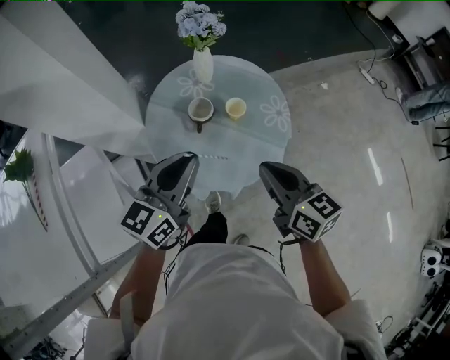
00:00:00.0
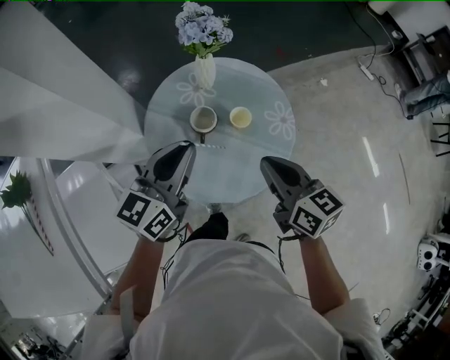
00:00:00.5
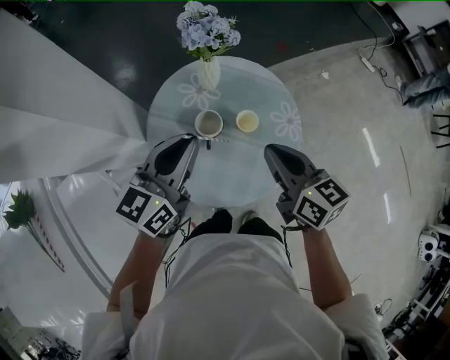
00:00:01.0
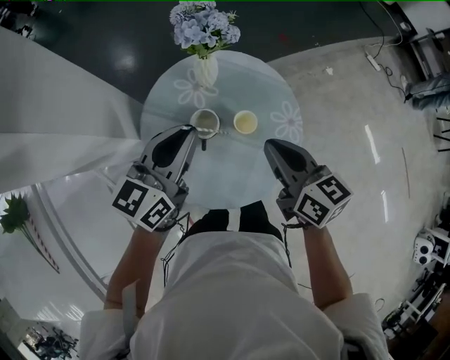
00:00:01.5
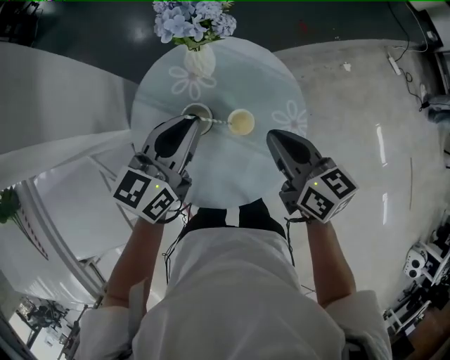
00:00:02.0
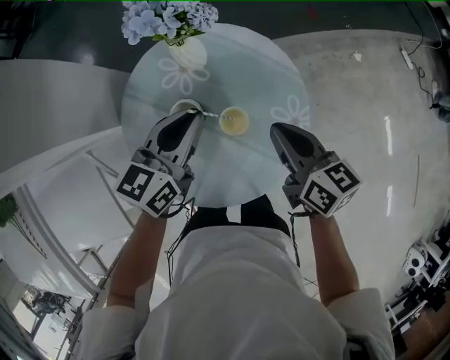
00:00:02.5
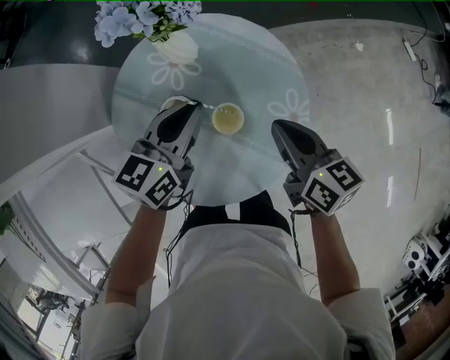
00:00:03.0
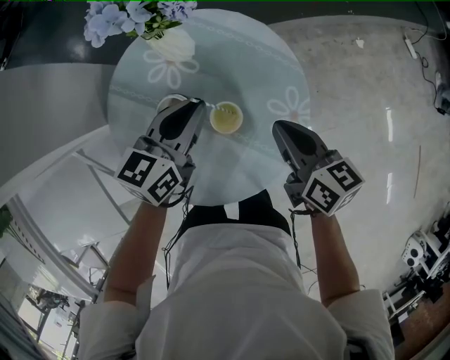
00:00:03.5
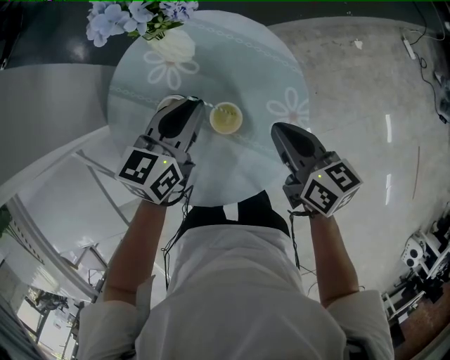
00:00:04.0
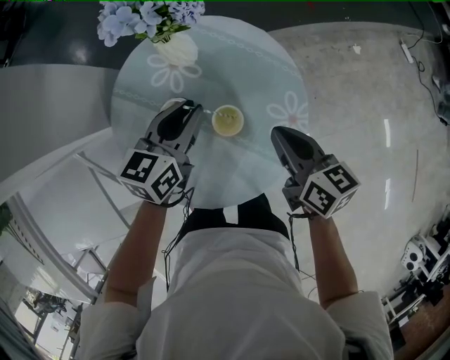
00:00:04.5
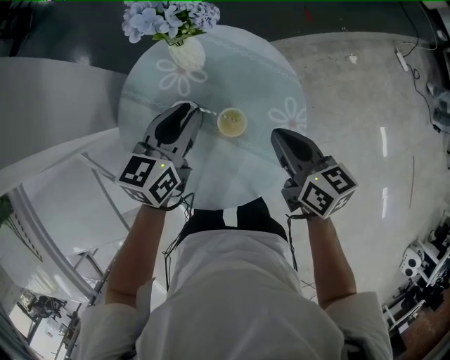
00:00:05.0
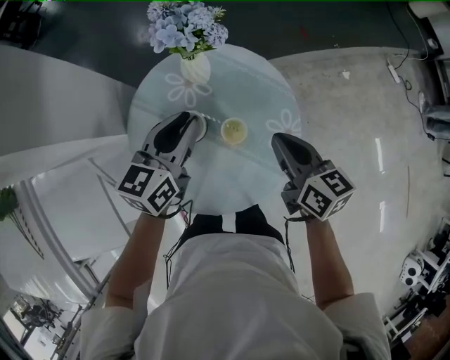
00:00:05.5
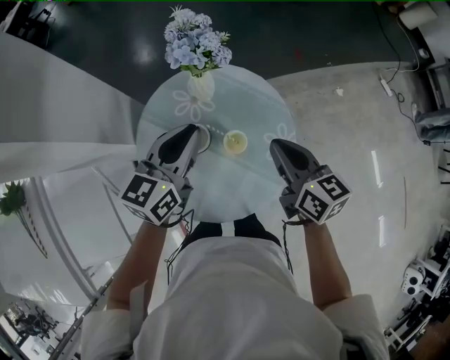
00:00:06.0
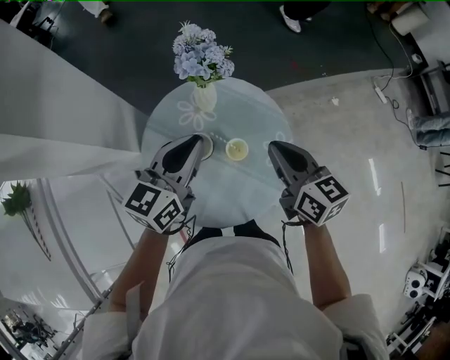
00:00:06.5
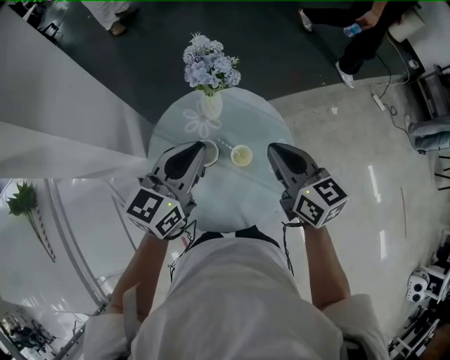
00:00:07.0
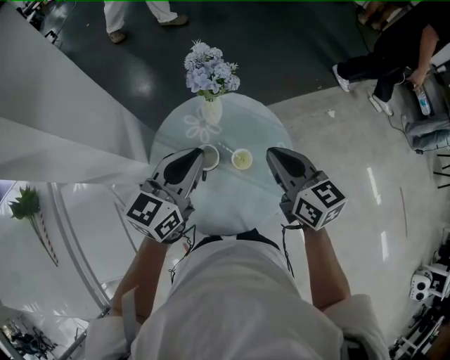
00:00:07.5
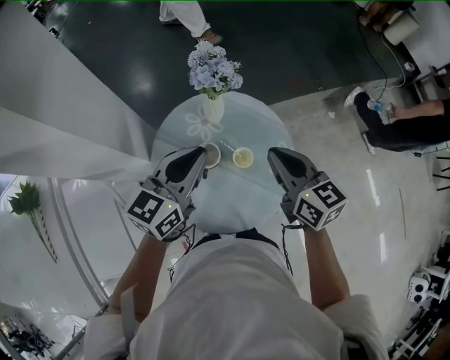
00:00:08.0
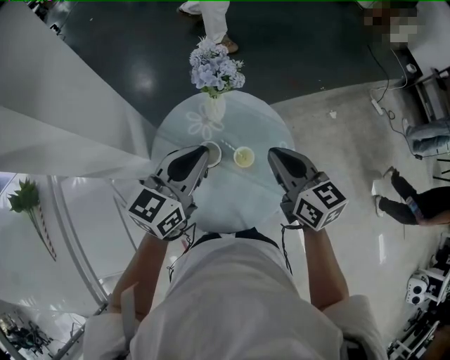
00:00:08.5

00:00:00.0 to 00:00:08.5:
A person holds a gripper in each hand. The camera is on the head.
00:00:00.0 to 00:00:02.0: The two grippers go roughly 20 cm forward.
00:00:02.0 to 00:00:04.0: The right gripper heads downward and to the right, covering approximately 10 cm. Meanwhile the left gripper heads downward, covering about 10 cm.
00:00:04.0 to 00:00:06.5: Both grippers travel together upward, roughly 15 cm.
00:00:06.5 to 00:00:08.5: There are only small adjustments of the grippers.

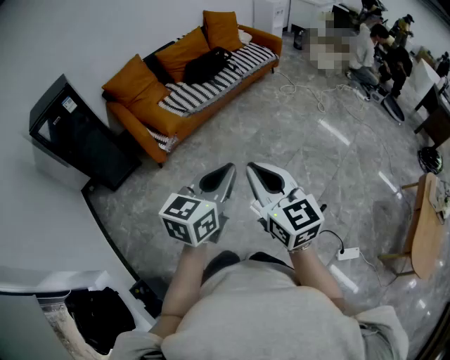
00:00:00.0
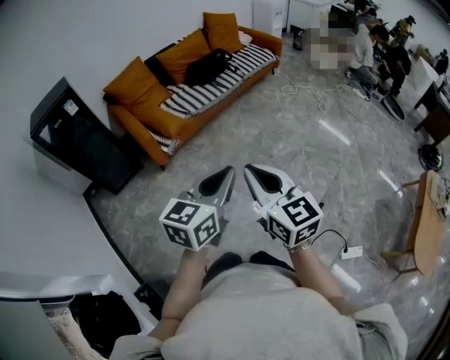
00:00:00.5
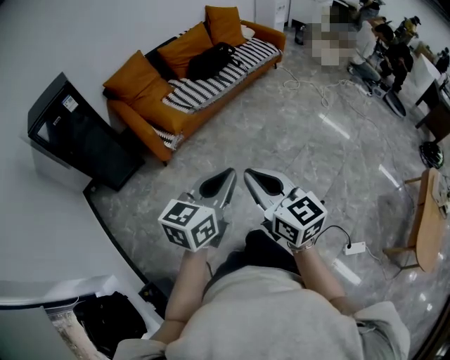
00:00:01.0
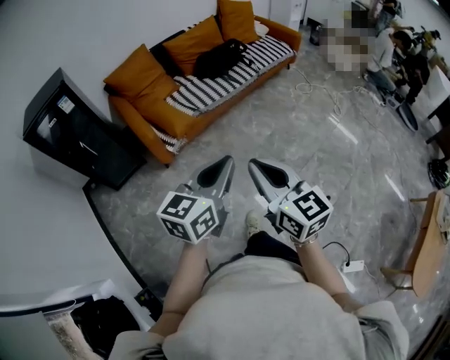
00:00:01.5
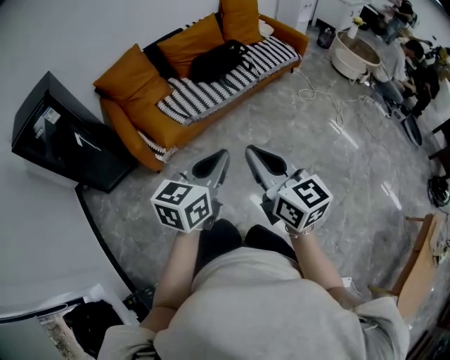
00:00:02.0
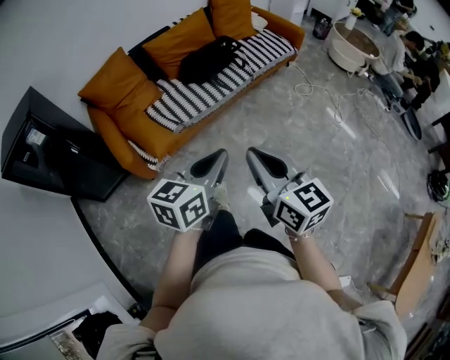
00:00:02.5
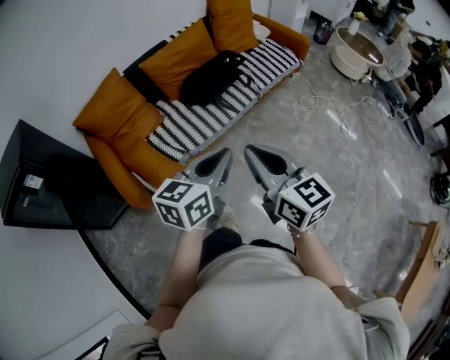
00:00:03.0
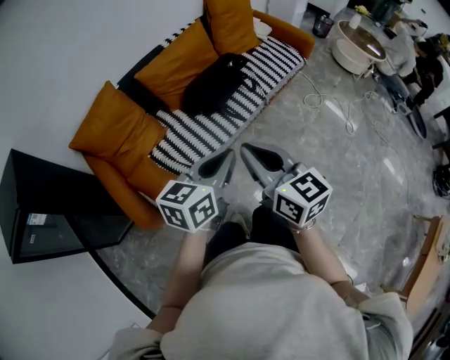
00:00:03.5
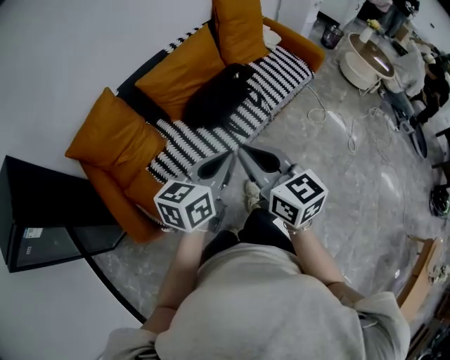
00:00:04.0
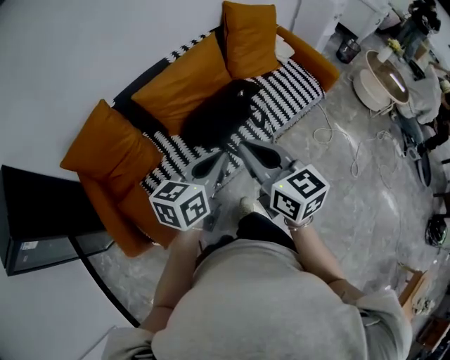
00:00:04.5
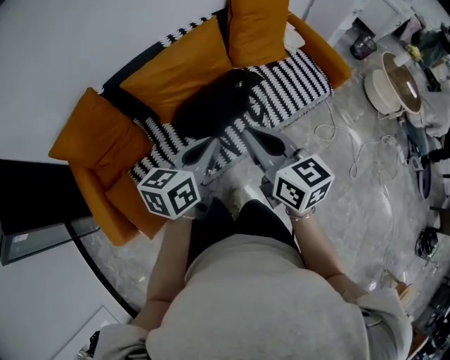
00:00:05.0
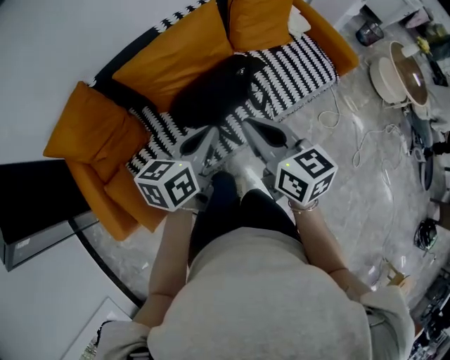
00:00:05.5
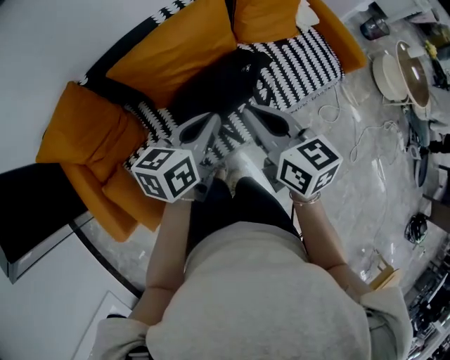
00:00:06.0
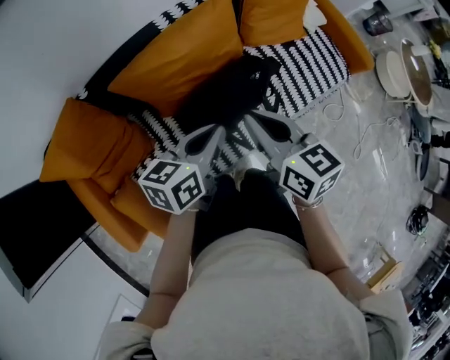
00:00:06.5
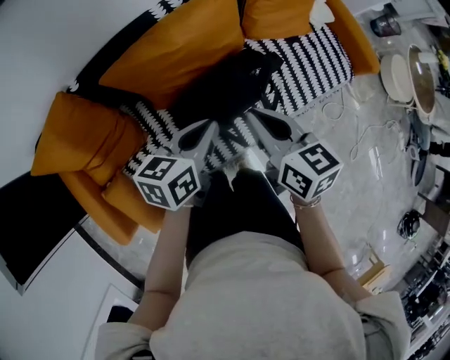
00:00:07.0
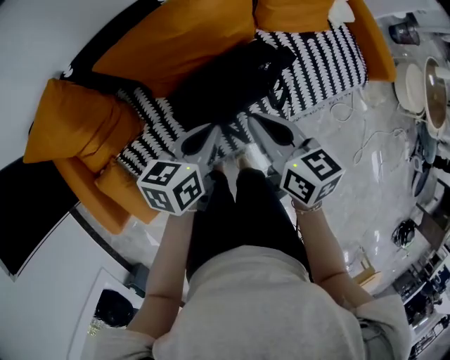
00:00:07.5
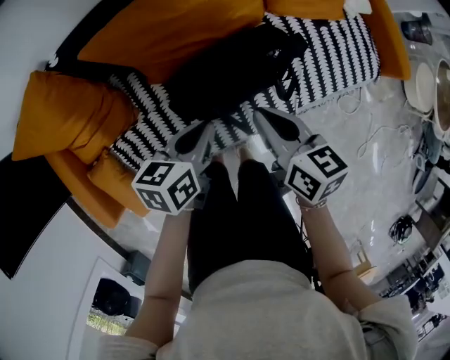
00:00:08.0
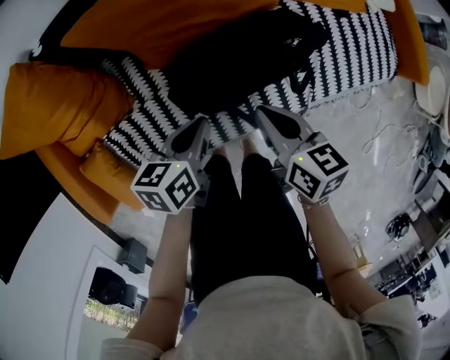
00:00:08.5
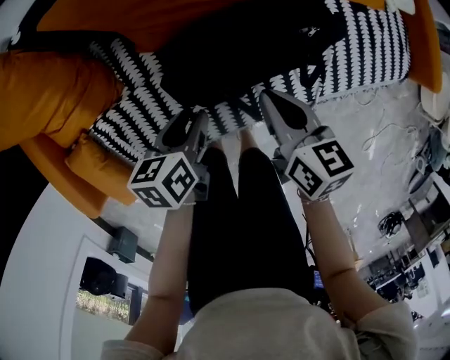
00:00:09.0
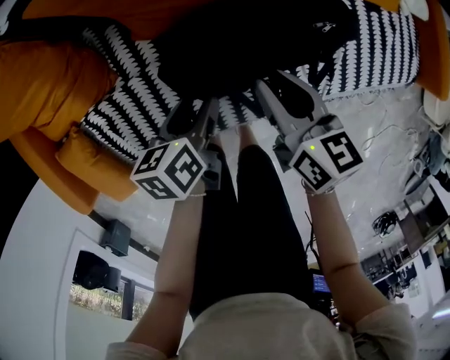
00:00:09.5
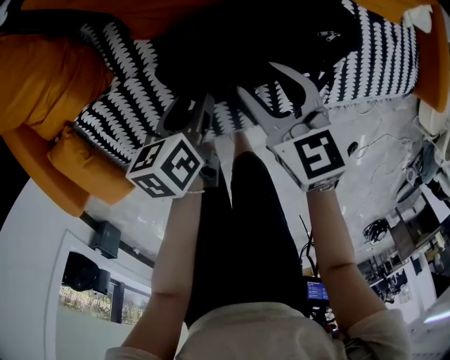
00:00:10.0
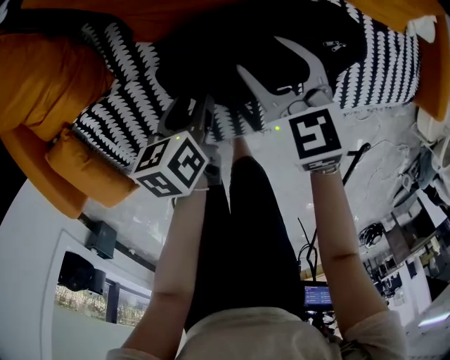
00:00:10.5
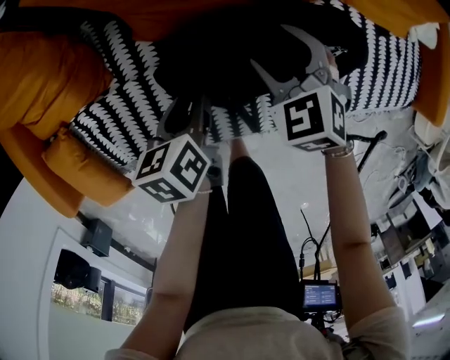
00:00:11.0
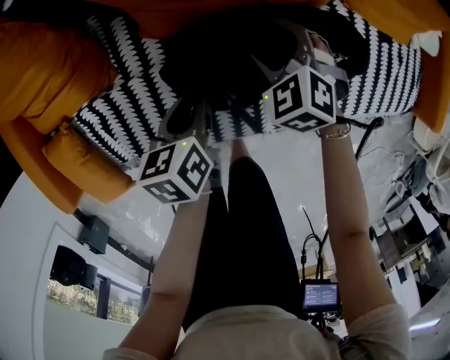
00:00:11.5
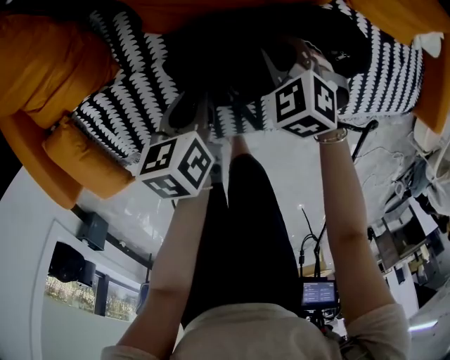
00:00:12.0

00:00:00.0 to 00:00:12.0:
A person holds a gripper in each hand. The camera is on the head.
00:00:00.0 to 00:00:02.0: Both grippers move forward, about 30 cm.
00:00:02.0 to 00:00:04.0: The pair of grippers is taken forward, about 50 cm.
00:00:04.0 to 00:00:06.0: The two grippers go roughly 35 cm forward.
00:00:06.0 to 00:00:08.0: The right gripper goes some 20 cm downward and forward. The left gripper travels downward by approximately 15 cm.
00:00:08.0 to 00:00:10.0: Both grippers travel together downward, approximately 20 cm. The left gripper changes its angle by some 30 degrees, and opens its fingers. Meanwhile the right gripper rotates roughly 30 degrees, and opens its fingers.
00:00:10.0 to 00:00:12.0: The left gripper closes its fingers; the right gripper goes about 10 cm downward and forward, rolls counterclockwise, seen from behind, by approximately 40 degrees, and closes its fingers.

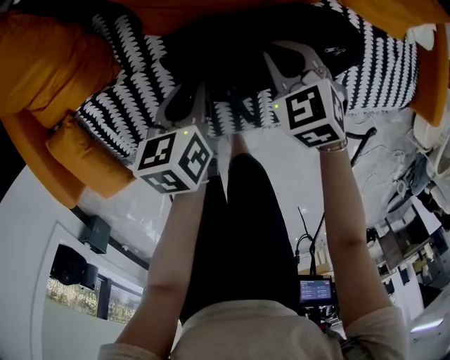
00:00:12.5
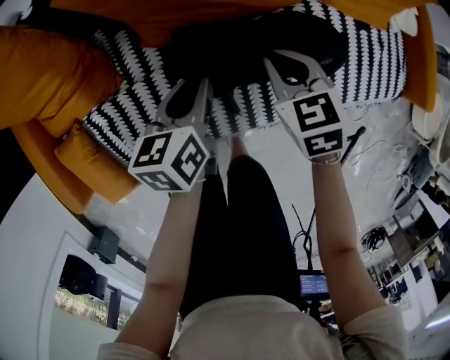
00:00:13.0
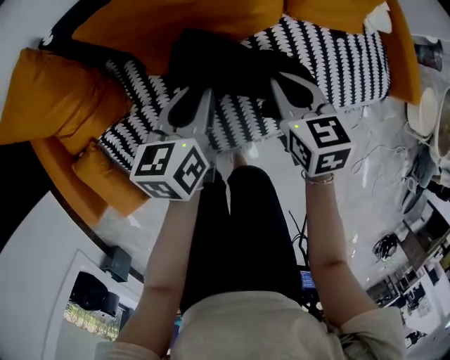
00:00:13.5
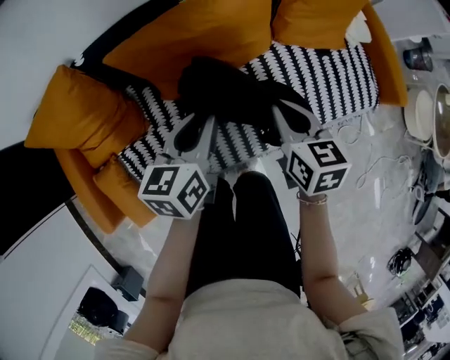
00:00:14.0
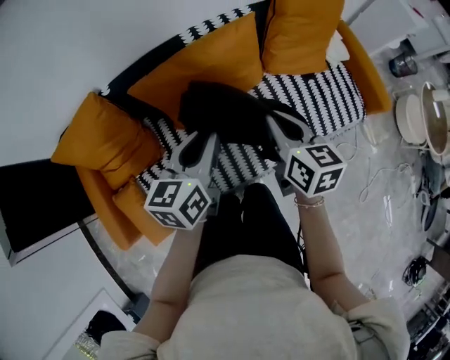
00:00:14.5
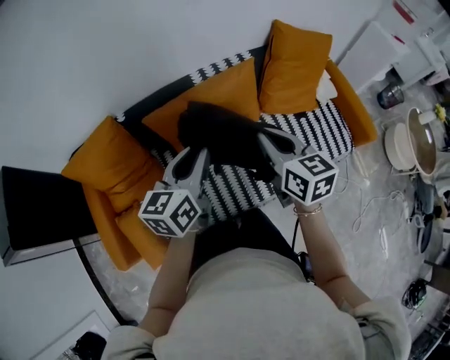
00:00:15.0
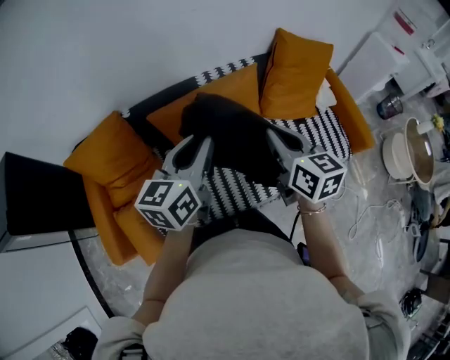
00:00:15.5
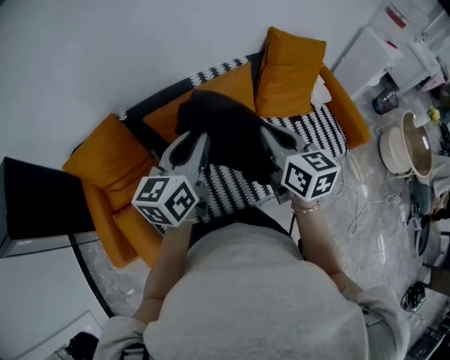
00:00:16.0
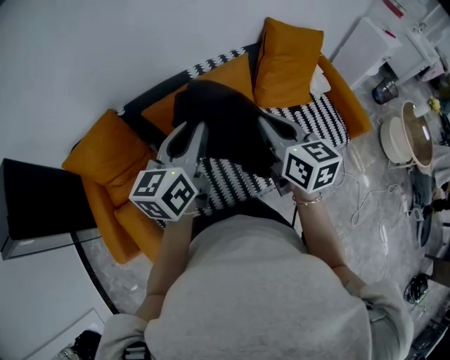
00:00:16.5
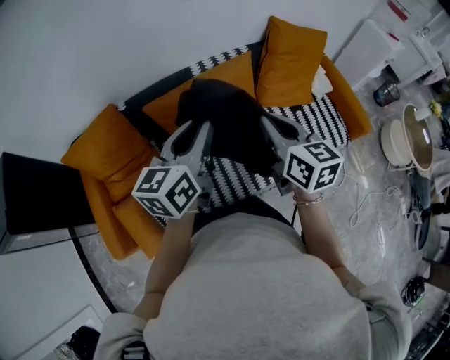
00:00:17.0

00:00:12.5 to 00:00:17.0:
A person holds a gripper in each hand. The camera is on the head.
00:00:12.5 to 00:00:14.5: Both grippers move upward, some 35 cm. The left gripper changes its angle by approximately 30 degrees. The right gripper twists about 50 degrees clockwise, seen from behind.
00:00:14.5 to 00:00:17.0: Both grippers move upward, approximately 15 cm.

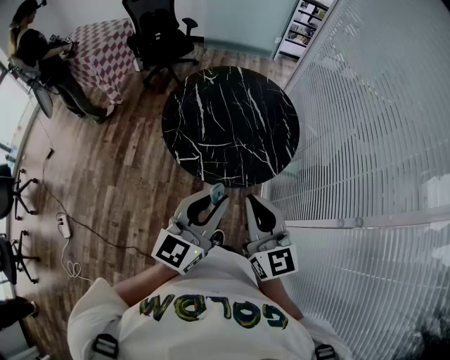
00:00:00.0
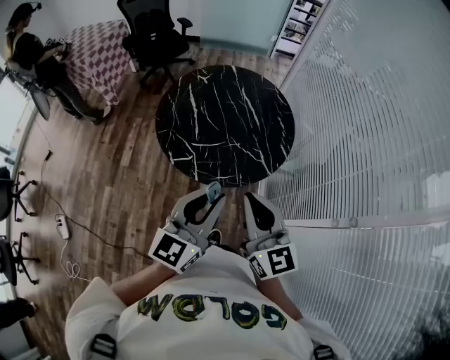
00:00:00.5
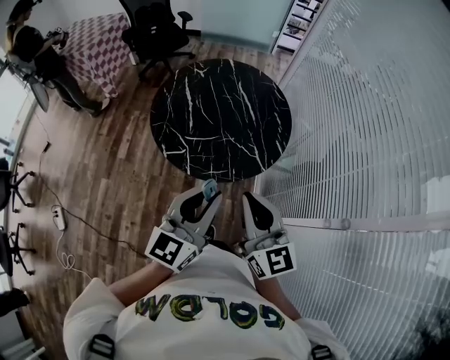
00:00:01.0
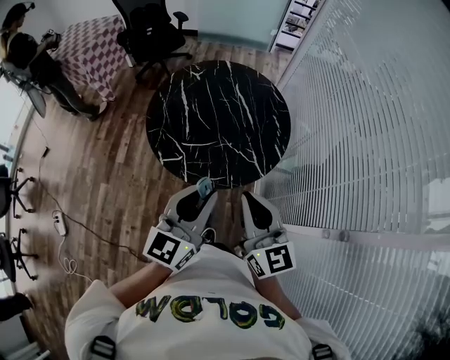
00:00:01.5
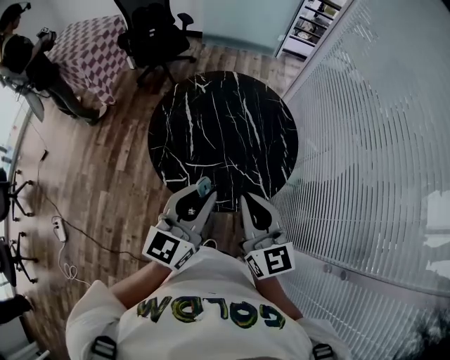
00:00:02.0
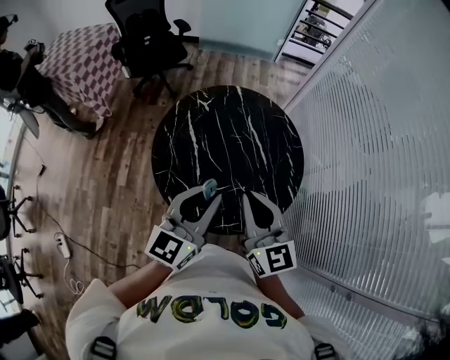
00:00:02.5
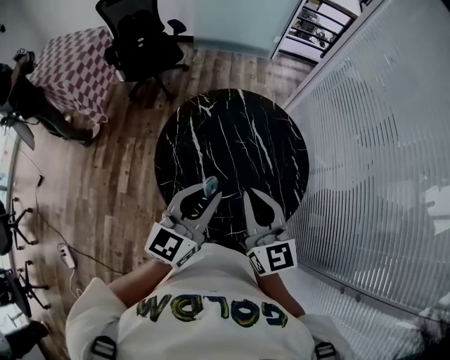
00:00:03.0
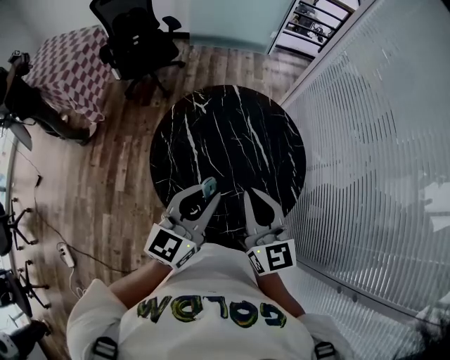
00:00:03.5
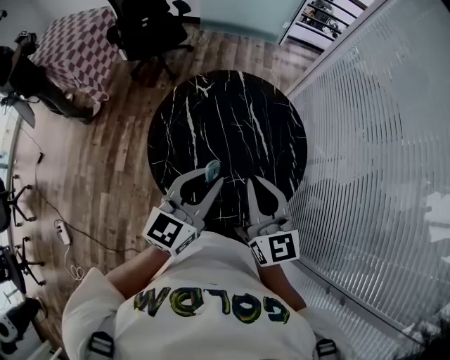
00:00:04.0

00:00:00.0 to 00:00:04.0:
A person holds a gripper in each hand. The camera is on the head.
00:00:00.0 to 00:00:02.0: Both grippers move forward, approximately 15 cm.
00:00:02.0 to 00:00:04.0: The grippers both shift forward by approximately 15 cm.
